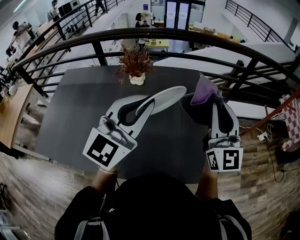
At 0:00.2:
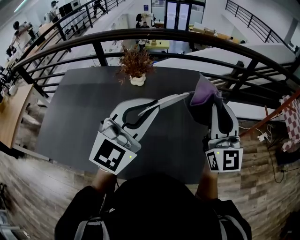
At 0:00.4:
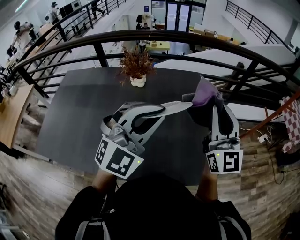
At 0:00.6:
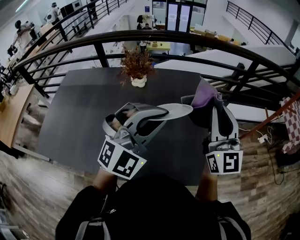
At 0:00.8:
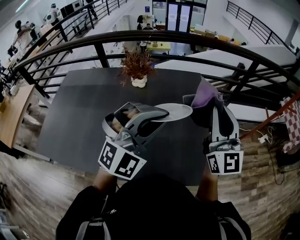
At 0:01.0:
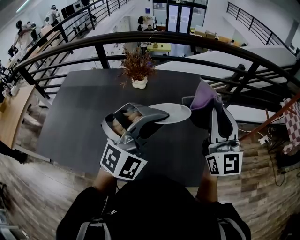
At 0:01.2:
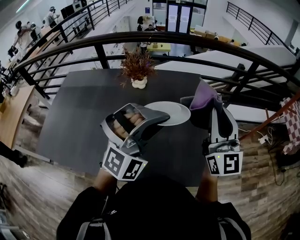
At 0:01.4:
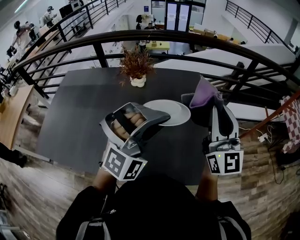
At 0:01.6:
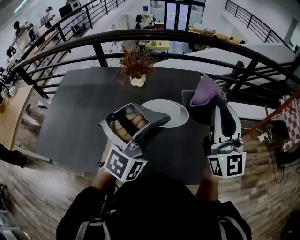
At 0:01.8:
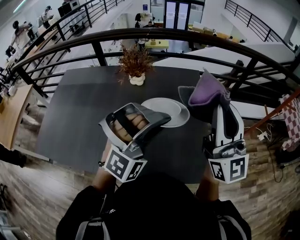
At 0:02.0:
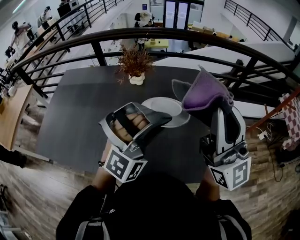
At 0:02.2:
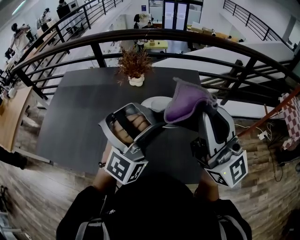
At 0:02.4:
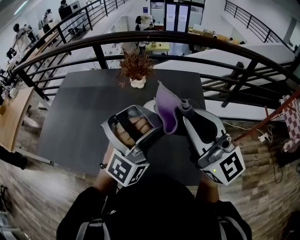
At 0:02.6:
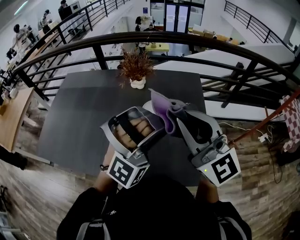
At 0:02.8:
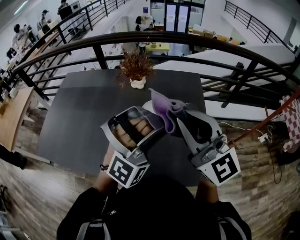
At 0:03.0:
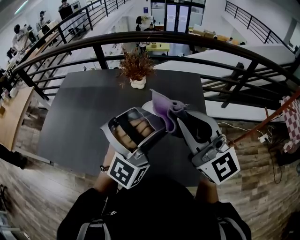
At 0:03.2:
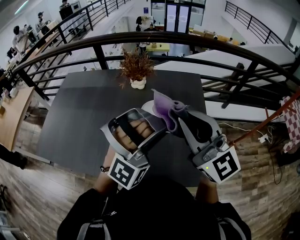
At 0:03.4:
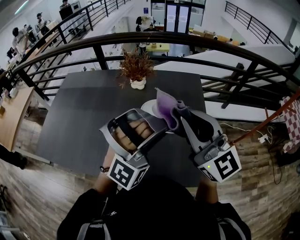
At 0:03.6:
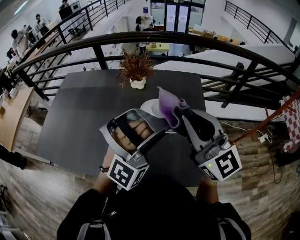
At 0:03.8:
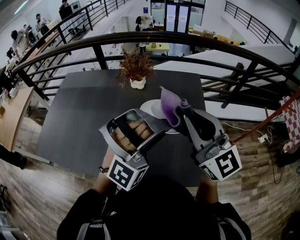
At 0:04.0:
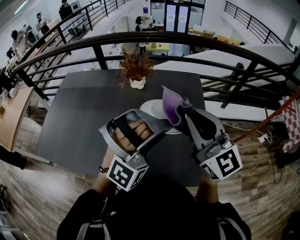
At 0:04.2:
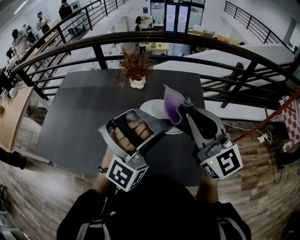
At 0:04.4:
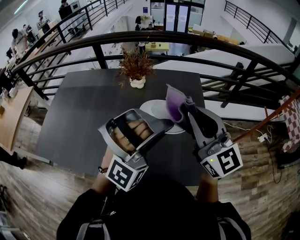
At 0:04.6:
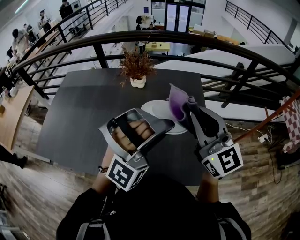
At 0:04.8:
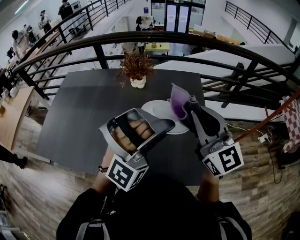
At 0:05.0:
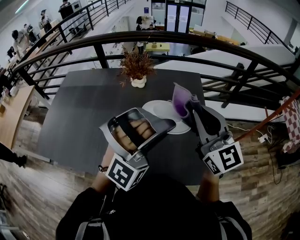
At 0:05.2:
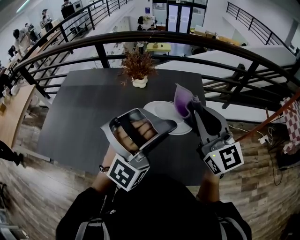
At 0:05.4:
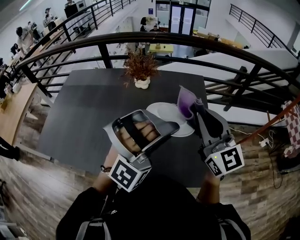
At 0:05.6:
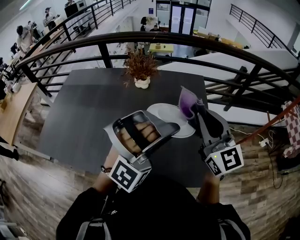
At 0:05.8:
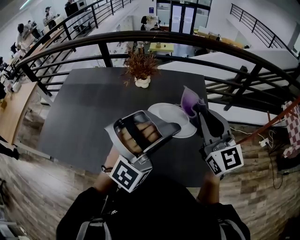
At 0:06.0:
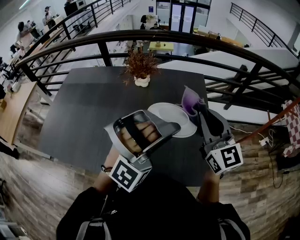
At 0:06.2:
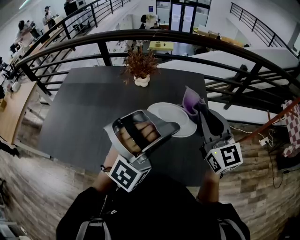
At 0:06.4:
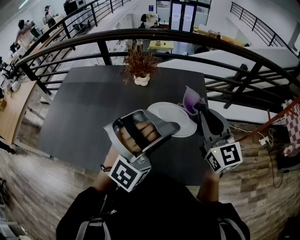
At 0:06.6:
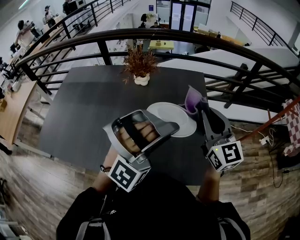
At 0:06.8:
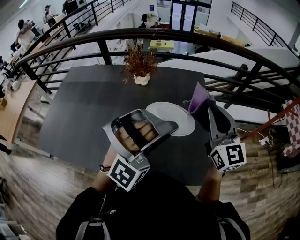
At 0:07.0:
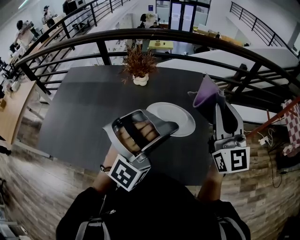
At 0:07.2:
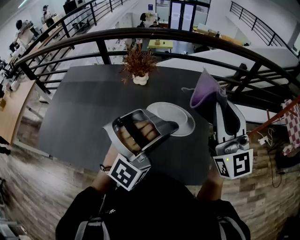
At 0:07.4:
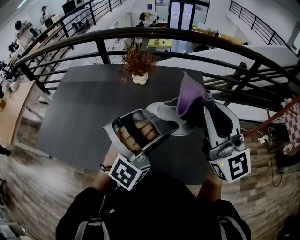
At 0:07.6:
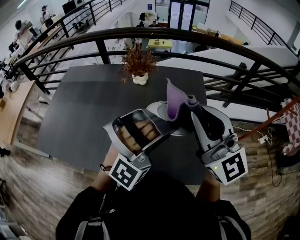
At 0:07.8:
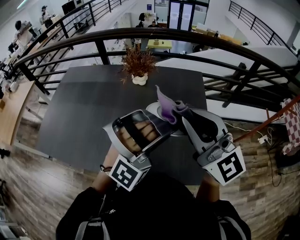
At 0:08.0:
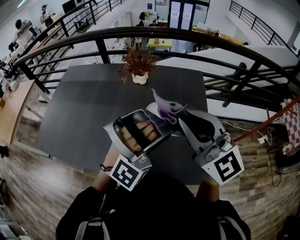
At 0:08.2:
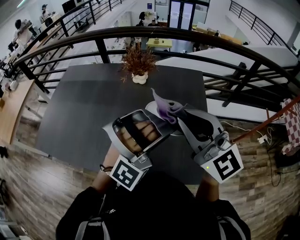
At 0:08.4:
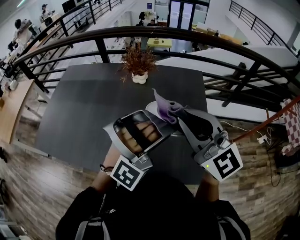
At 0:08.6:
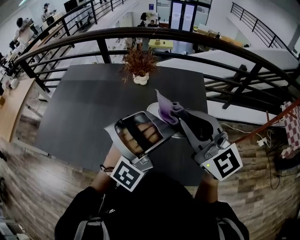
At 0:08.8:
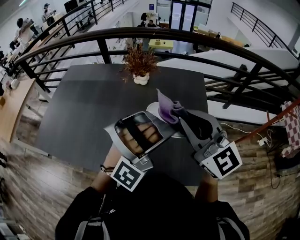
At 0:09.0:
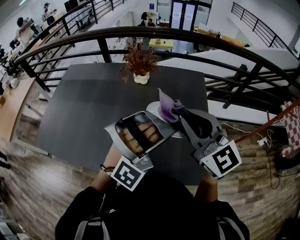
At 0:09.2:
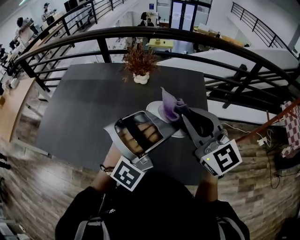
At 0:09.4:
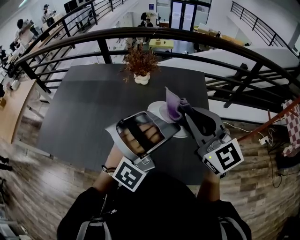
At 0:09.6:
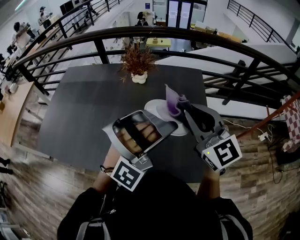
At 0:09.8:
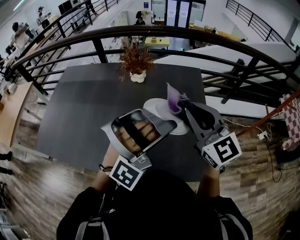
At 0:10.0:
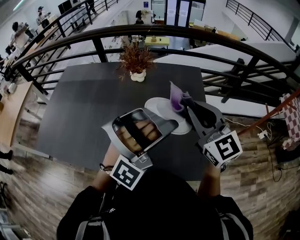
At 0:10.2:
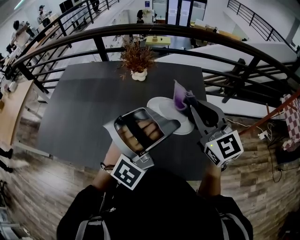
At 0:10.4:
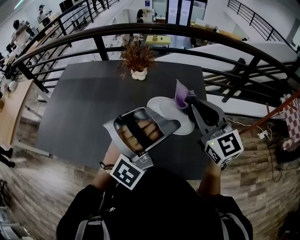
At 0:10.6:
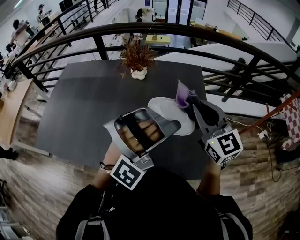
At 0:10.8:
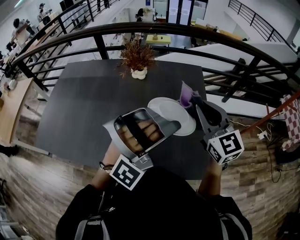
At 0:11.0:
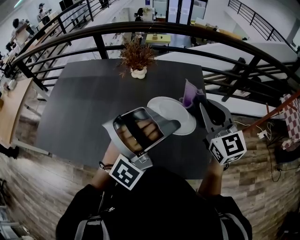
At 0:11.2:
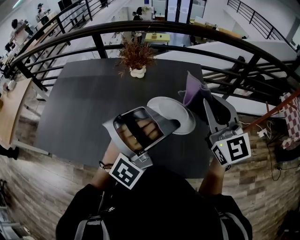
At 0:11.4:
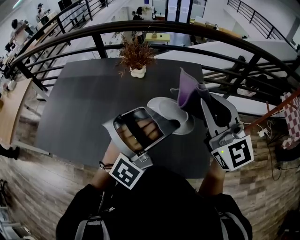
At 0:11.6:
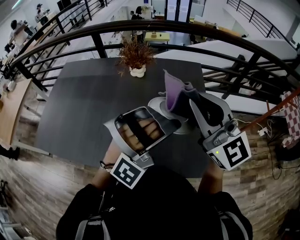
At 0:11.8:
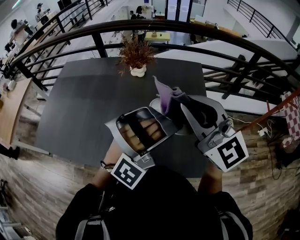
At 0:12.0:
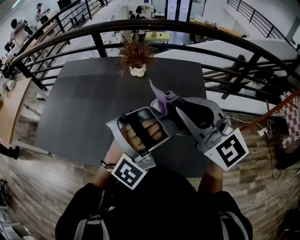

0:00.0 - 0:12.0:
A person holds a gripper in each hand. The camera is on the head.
0:00.0 - 0:01.6: The left gripper is displaced downward and to the right by about 10 cm, and twists roughly 60 degrees clockwise, seen from behind.
0:01.6 - 0:03.0: The right gripper goes about 10 cm to the left, and rotates roughly 30 degrees.
0:03.0 - 0:04.4: The grippers stay close to where they were, moving slightly.
0:04.4 - 0:06.0: The right gripper ends up some 5 cm from where it was.
0:06.0 - 0:07.6: The right gripper goes roughly 10 cm upward and backward.
0:07.6 - 0:09.0: The right gripper is displaced downward by about 5 cm.
0:09.0 - 0:10.4: The right gripper changes place by roughly 5 cm.
0:10.4 - 0:12.0: The right gripper moves to the left, roughly 5 cm.

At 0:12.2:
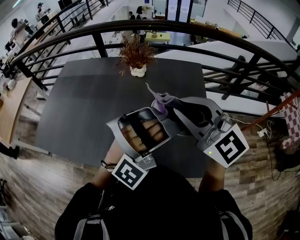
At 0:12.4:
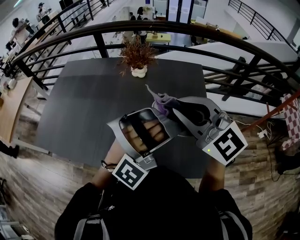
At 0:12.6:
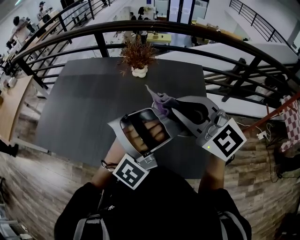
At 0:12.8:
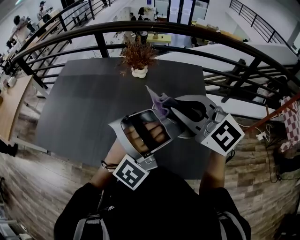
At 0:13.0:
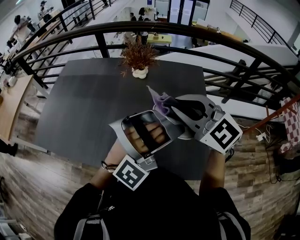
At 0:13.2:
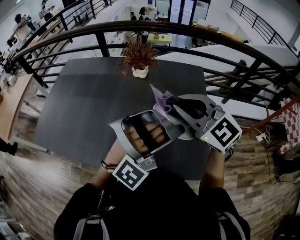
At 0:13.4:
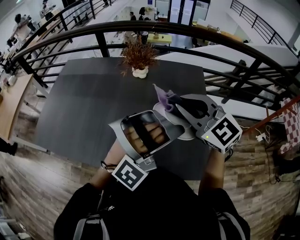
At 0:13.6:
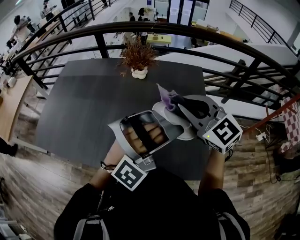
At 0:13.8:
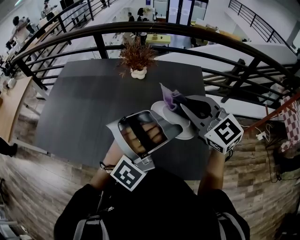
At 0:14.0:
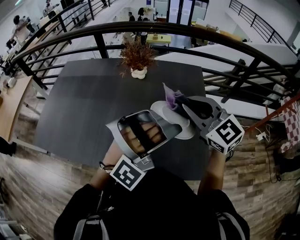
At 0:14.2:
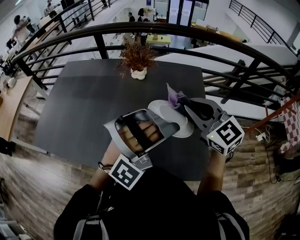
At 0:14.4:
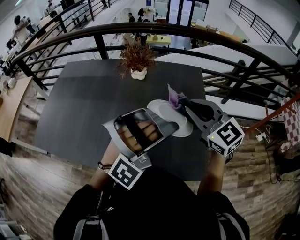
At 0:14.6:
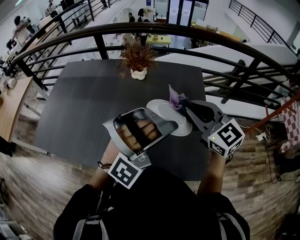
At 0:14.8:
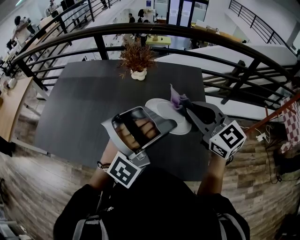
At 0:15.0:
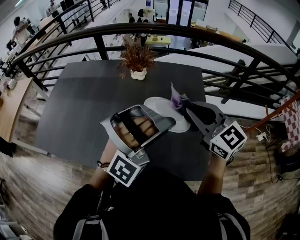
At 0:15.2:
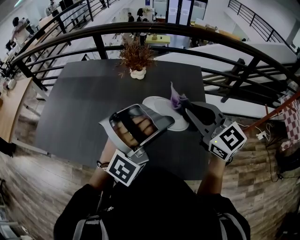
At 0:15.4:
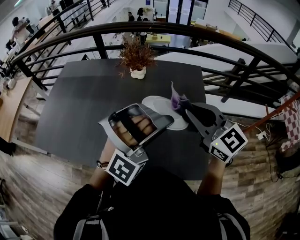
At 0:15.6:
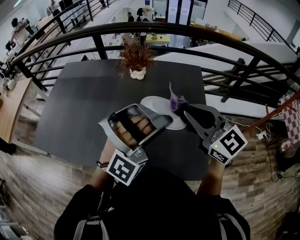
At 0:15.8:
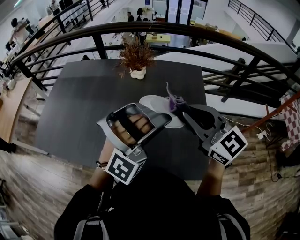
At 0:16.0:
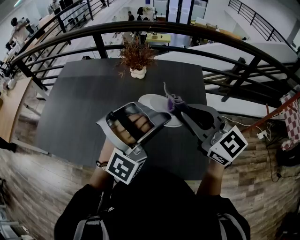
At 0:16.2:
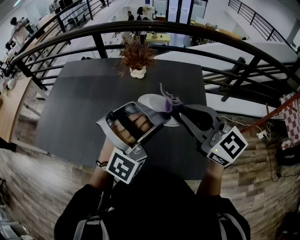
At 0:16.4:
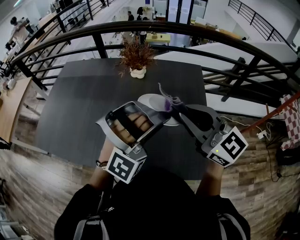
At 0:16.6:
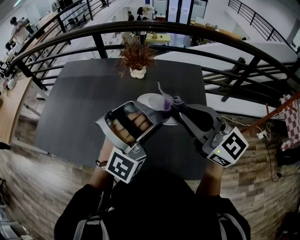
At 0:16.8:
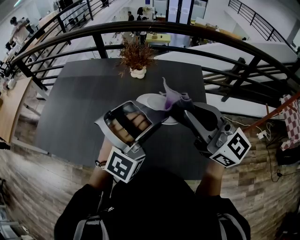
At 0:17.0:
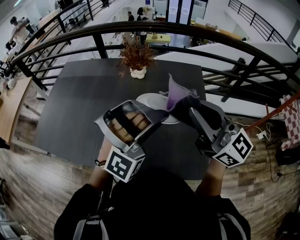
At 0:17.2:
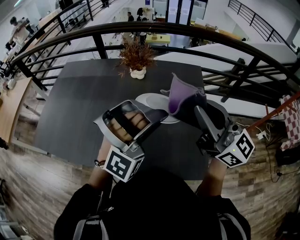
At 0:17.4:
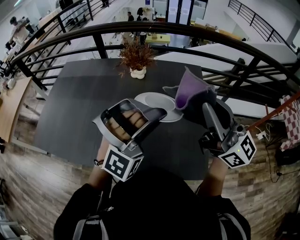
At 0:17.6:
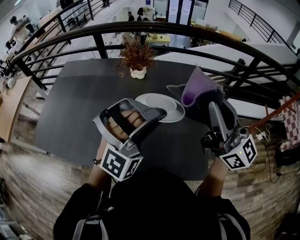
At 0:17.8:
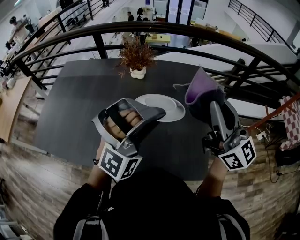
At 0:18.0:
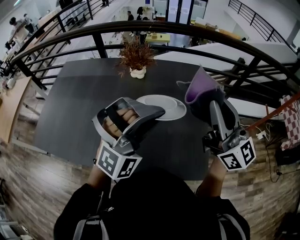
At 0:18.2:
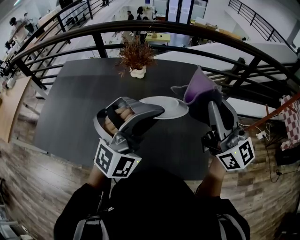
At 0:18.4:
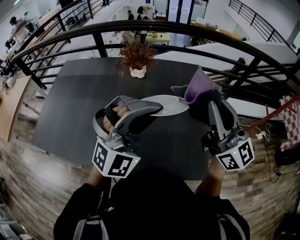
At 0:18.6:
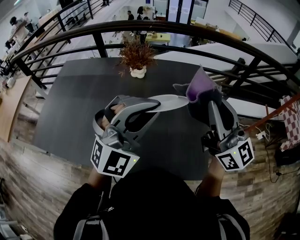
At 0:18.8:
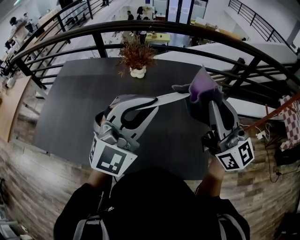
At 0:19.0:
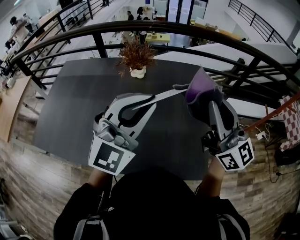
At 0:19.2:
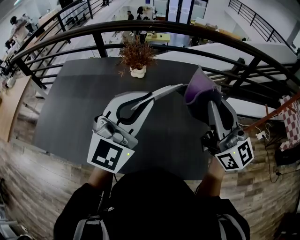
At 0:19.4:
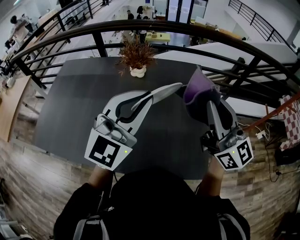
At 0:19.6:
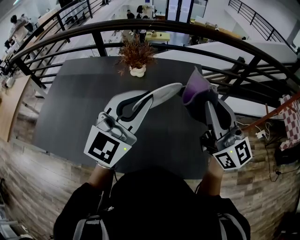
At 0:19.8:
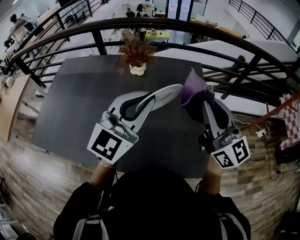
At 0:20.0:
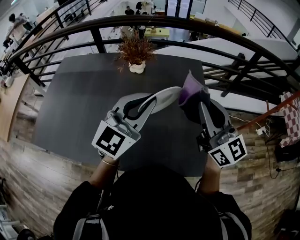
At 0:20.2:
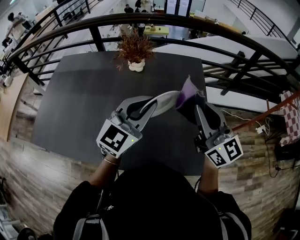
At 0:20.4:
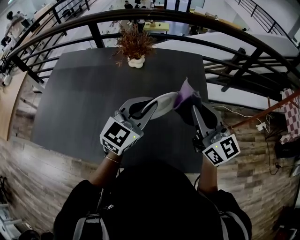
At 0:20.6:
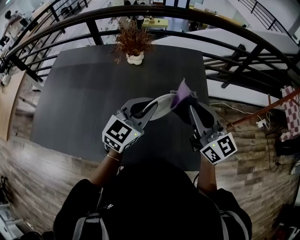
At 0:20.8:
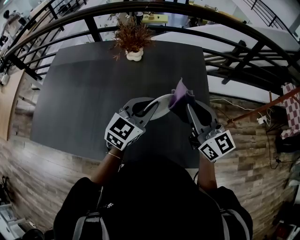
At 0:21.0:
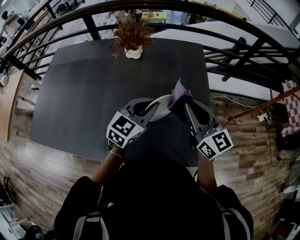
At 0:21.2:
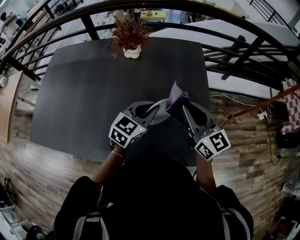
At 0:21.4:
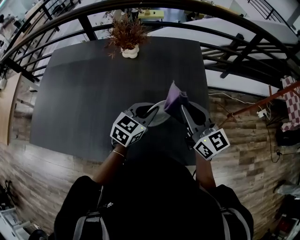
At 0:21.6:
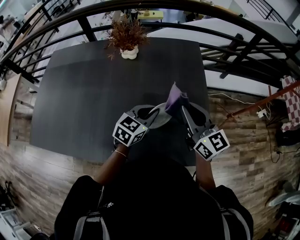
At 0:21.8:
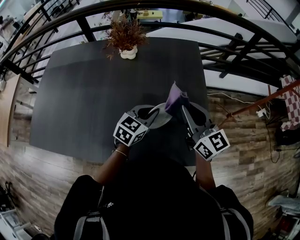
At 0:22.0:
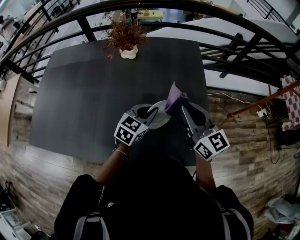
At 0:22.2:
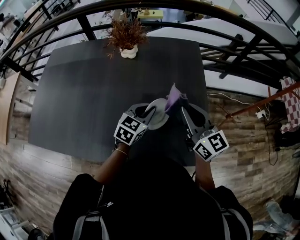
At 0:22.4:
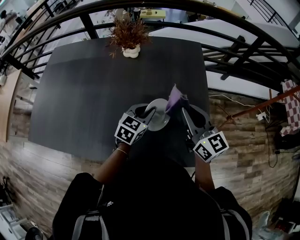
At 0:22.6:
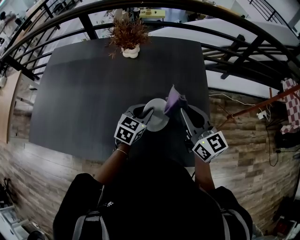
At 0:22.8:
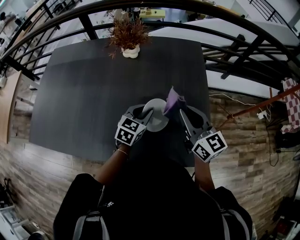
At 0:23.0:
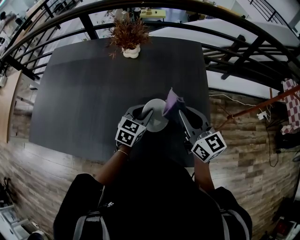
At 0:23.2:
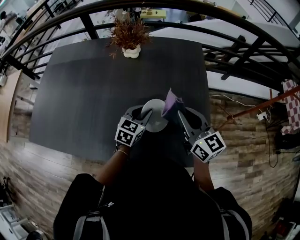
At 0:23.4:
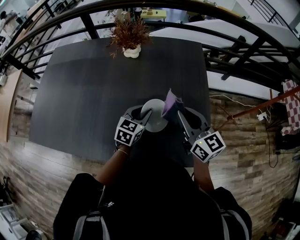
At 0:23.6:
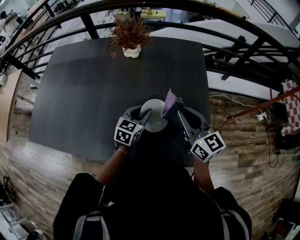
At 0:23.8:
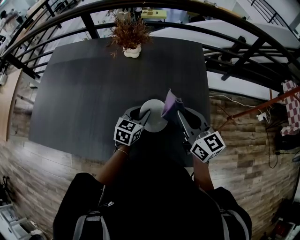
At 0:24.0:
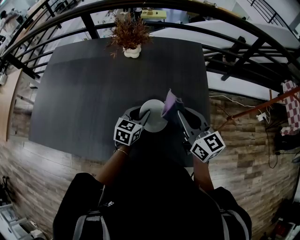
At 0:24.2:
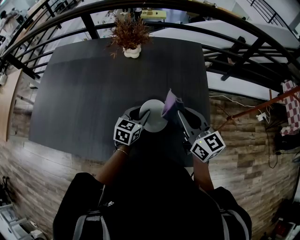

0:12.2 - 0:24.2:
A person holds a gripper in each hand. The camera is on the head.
0:12.2 - 0:13.8: The right gripper ends up roughly 5 cm from where it was.
0:13.8 - 0:15.2: The grippers move only a little.
0:15.2 - 0:16.6: The right gripper moves some 5 cm.
0:16.6 - 0:18.2: The right gripper moves to the right, about 10 cm, and changes its angle by some 30 degrees; the left gripper rotates roughly 30 degrees.
0:18.2 - 0:19.8: The left gripper shifts by about 5 cm, and rotates around the line of its fingers by roughly 50 degrees, counterclockwise from behind.
0:19.8 - 0:21.2: The two grippers go approximately 20 cm downward. The left gripper turns by approximately 30 degrees.
0:21.2 - 0:22.6: The left gripper travels downward by roughly 10 cm.
0:22.6 - 0:24.2: The grippers move only a little.
